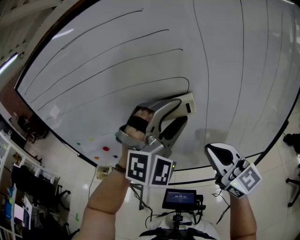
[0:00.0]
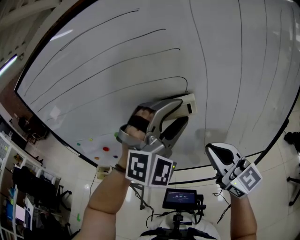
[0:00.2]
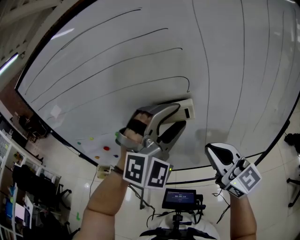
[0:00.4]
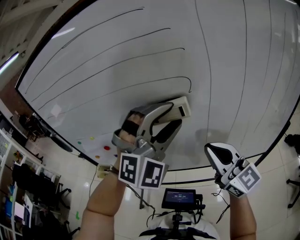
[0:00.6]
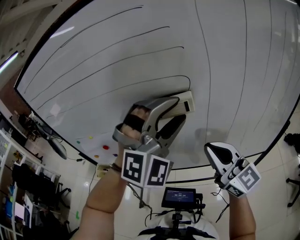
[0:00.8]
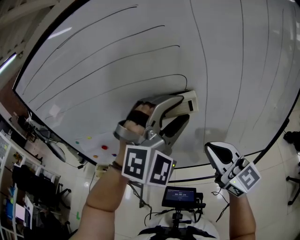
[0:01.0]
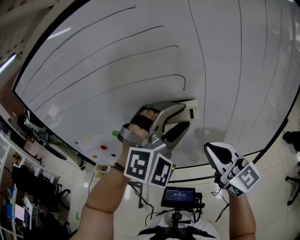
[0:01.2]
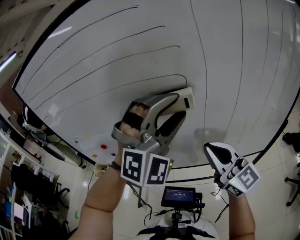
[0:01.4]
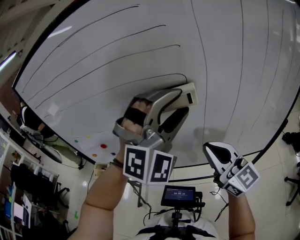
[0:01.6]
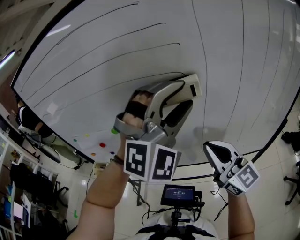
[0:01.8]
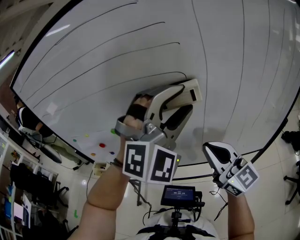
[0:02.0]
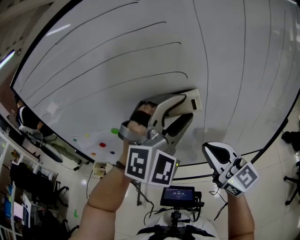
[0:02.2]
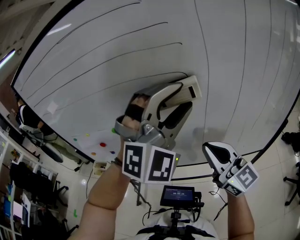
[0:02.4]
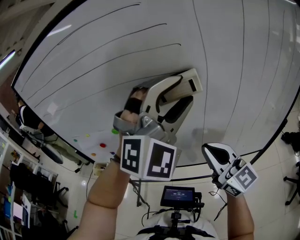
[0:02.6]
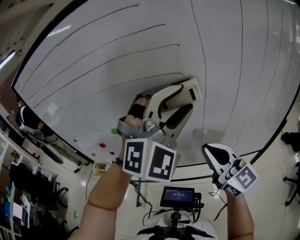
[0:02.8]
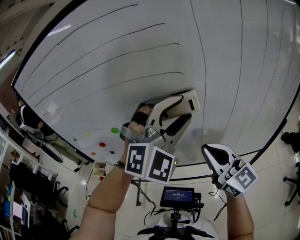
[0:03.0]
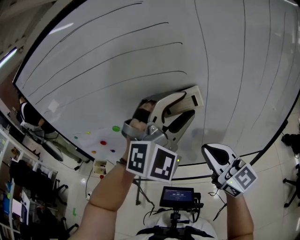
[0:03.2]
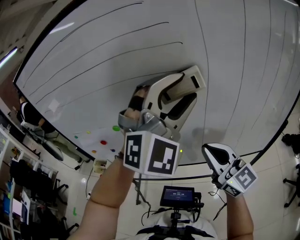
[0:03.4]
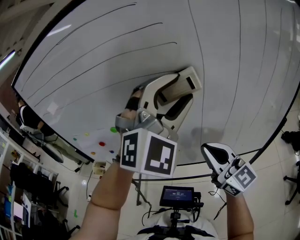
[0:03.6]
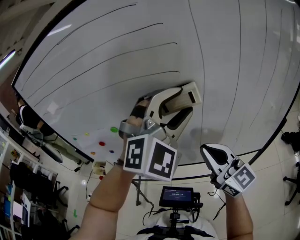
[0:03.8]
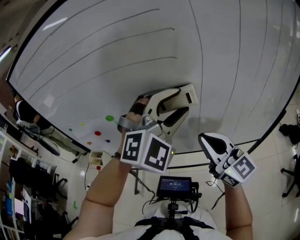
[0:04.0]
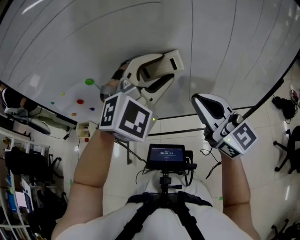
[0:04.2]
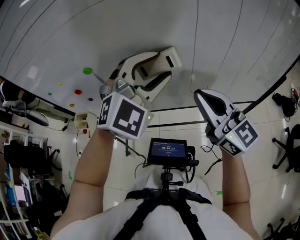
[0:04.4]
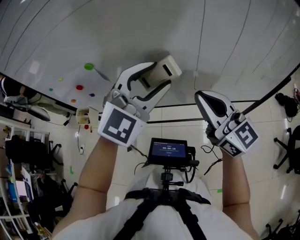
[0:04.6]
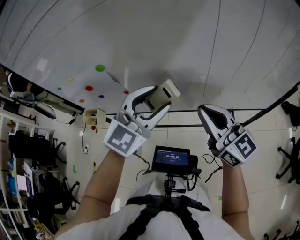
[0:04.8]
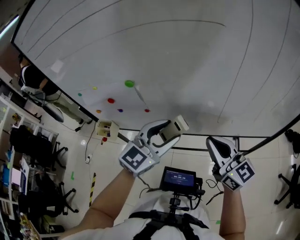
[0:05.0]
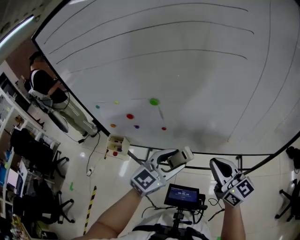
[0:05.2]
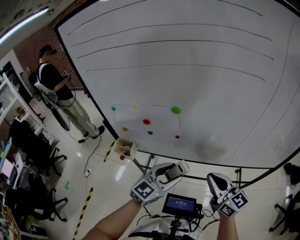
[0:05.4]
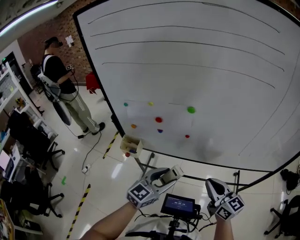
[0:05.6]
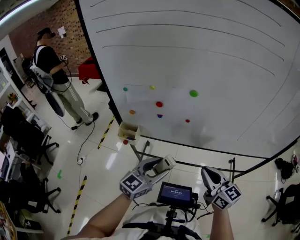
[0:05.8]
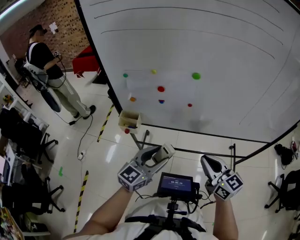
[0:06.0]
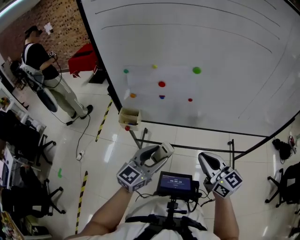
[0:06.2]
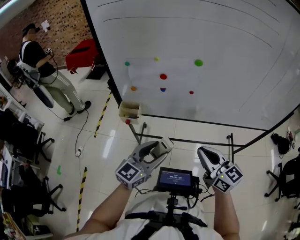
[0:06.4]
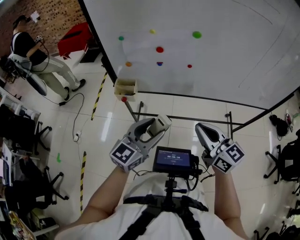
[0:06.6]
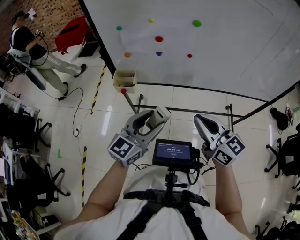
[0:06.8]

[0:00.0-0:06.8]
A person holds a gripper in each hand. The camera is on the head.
0:00.0 to 0:02.8: The grippers stay close to where they were, moving slightly.
0:02.8 to 0:04.0: The left gripper shifts roughly 5 cm downward.
0:04.0 to 0:05.4: The right gripper travels to the left, downward and backward by some 20 cm, while the left gripper is displaced to the left, downward and backward by some 35 cm, and twists approximately 60 degrees counterclockwise, seen from behind.
0:05.4 to 0:06.8: The grippers both shift to the left and backward by approximately 20 cm.

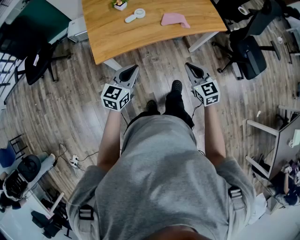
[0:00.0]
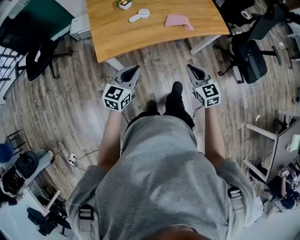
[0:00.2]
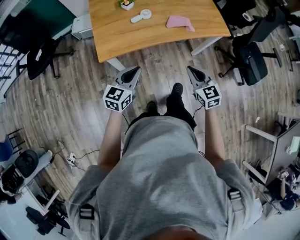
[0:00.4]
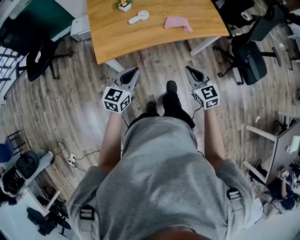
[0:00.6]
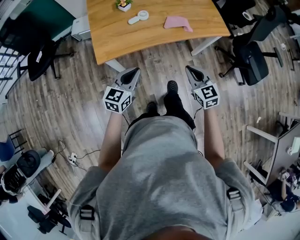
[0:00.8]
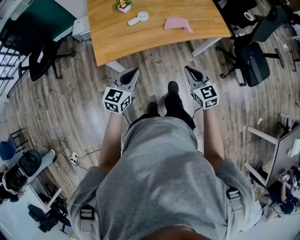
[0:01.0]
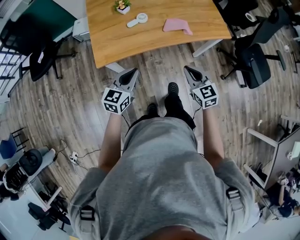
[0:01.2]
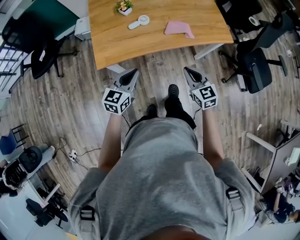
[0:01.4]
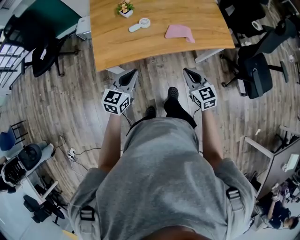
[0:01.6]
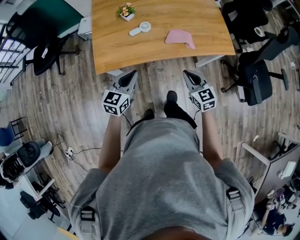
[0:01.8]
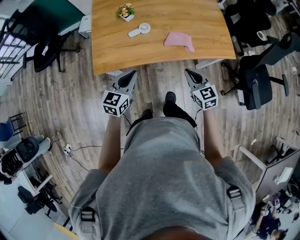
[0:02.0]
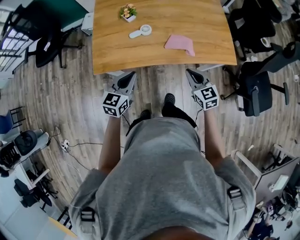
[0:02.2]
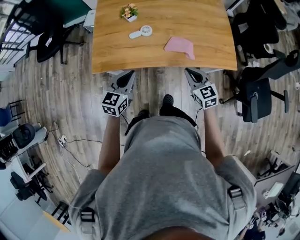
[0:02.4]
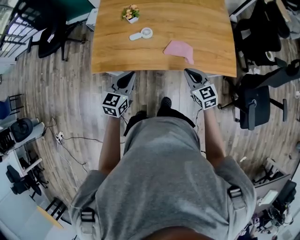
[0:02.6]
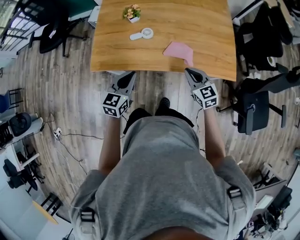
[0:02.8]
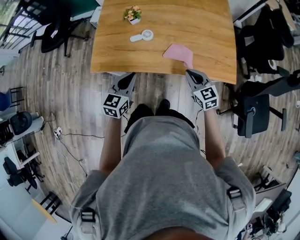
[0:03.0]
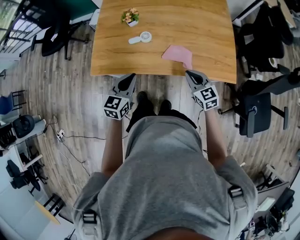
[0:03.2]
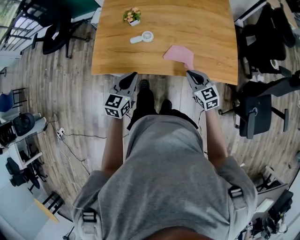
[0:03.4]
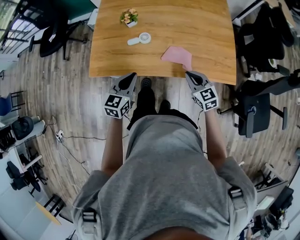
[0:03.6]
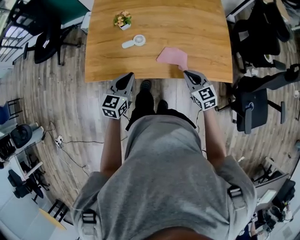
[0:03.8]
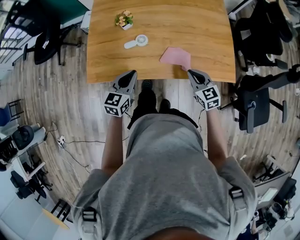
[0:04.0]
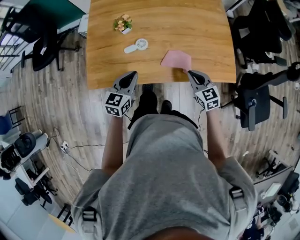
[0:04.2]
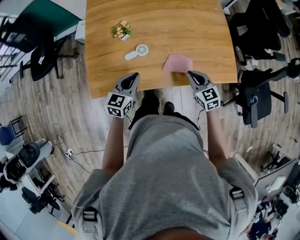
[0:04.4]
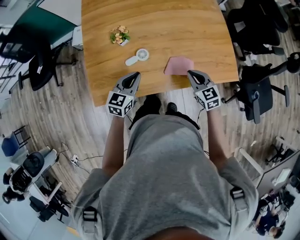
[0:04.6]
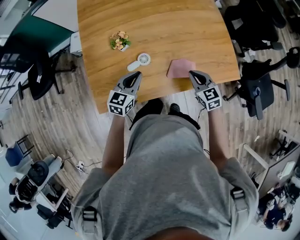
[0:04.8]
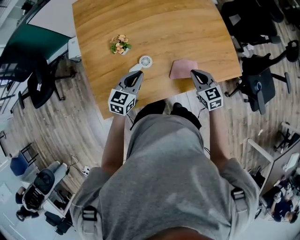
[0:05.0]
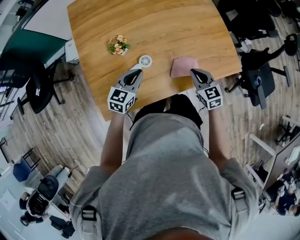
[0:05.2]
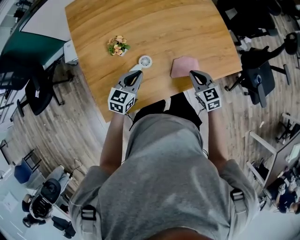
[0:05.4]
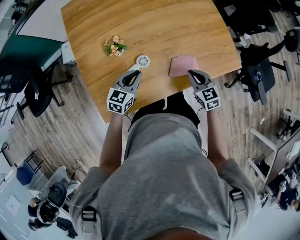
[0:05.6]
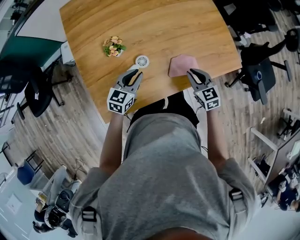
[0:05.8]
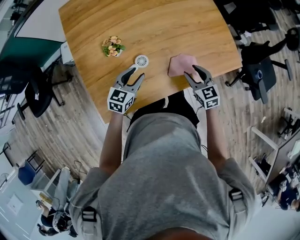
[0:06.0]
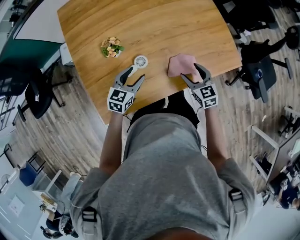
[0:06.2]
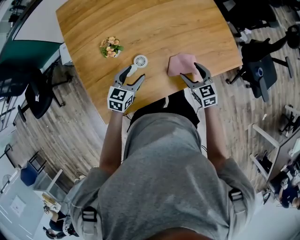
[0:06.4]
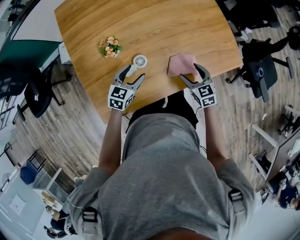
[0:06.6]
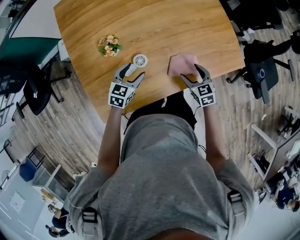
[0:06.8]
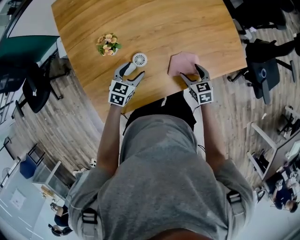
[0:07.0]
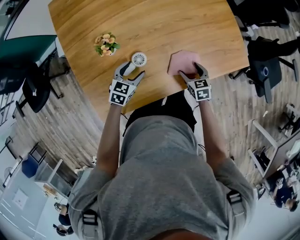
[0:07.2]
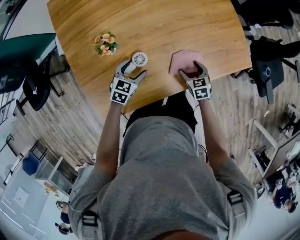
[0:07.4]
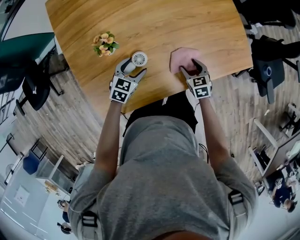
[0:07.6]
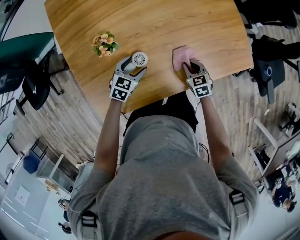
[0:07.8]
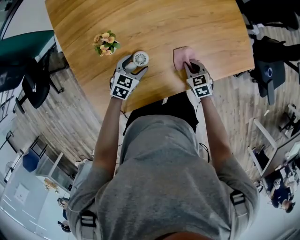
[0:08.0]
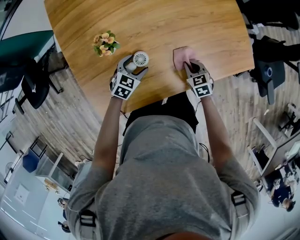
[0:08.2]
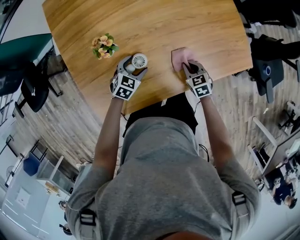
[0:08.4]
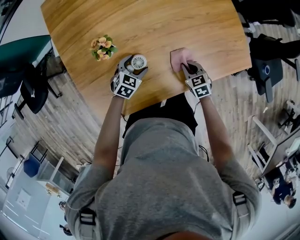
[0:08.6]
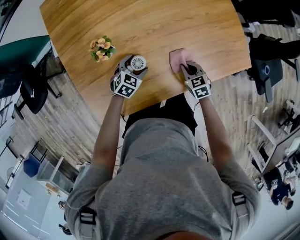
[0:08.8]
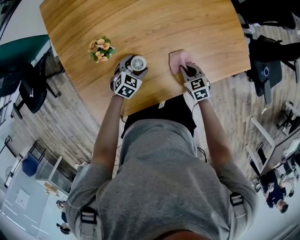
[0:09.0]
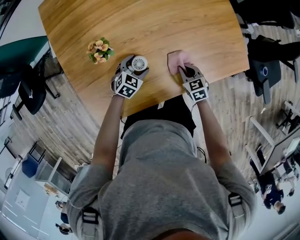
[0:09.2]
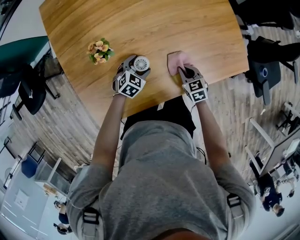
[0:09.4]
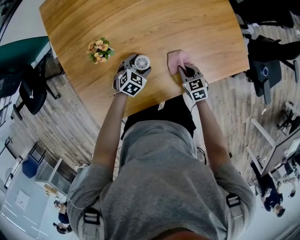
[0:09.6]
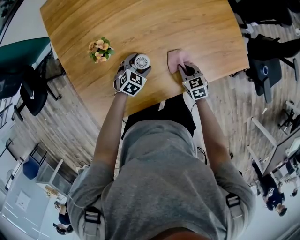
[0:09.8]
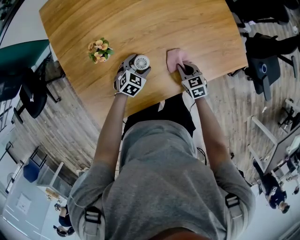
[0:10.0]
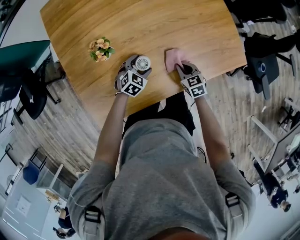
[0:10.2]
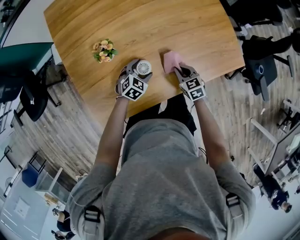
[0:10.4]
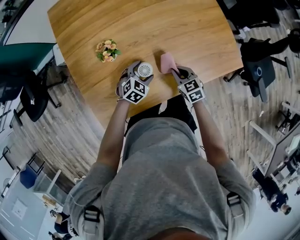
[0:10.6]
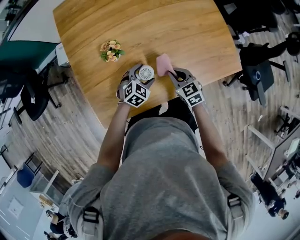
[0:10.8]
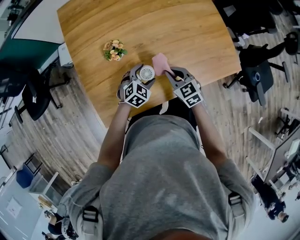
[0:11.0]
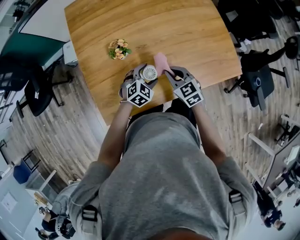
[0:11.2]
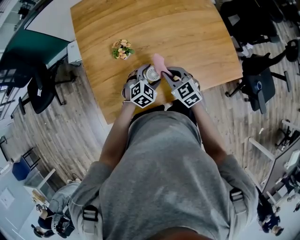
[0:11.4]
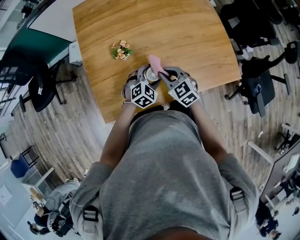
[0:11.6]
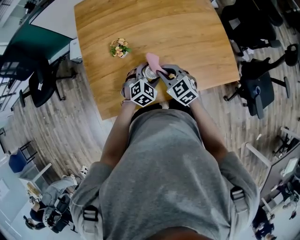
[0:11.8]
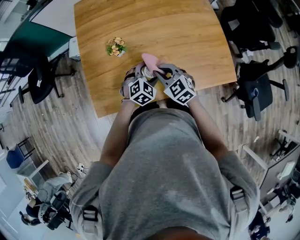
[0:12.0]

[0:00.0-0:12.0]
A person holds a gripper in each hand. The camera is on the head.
0:00.0 to 0:01.6: Both grippers travel together forward, roughly 10 cm.
0:01.6 to 0:03.0: The left gripper is displaced forward and to the right by some 10 cm. Meanwhile the right gripper travels forward and to the right by about 20 cm.
0:03.0 to 0:04.4: The right gripper heads forward, covering approximately 10 cm; the left gripper moves forward, roughly 15 cm.
0:04.4 to 0:06.0: The right gripper ends up roughly 5 cm from where it was, and opens its fingers; the left gripper travels forward and downward by roughly 10 cm, changes its angle by about 20 degrees, and opens up.
0:06.0 to 0:07.6: The grippers both shift downward by roughly 15 cm. The left gripper opens up.
0:07.6 to 0:09.0: The right gripper closes its fingers. Meanwhile the left gripper changes place by some 5 cm.
0:09.0 to 0:10.4: The grippers make only small movements.
0:10.4 to 0:12.0: The right gripper heads upward and to the left, covering approximately 20 cm, and rotates roughly 40 degrees. Meanwhile the left gripper goes about 15 cm upward.

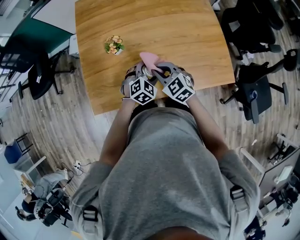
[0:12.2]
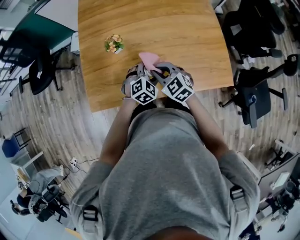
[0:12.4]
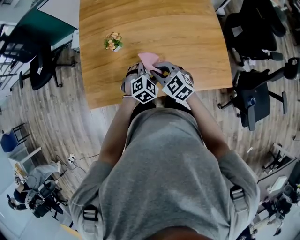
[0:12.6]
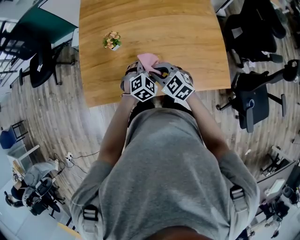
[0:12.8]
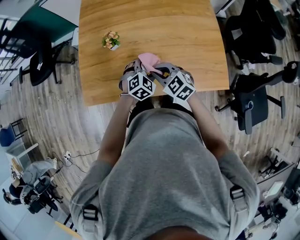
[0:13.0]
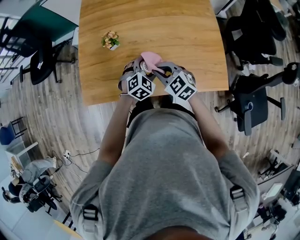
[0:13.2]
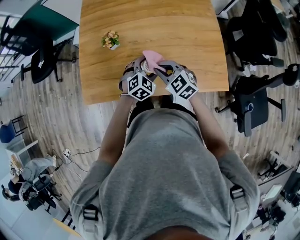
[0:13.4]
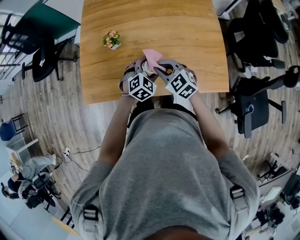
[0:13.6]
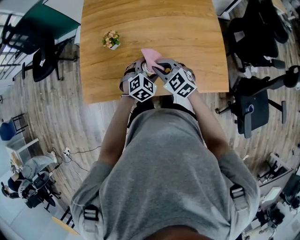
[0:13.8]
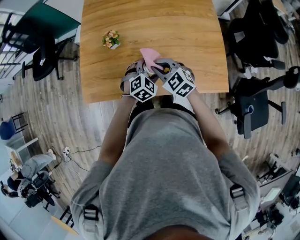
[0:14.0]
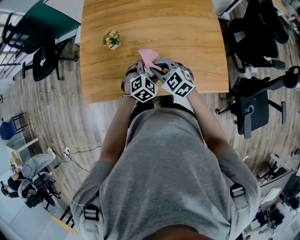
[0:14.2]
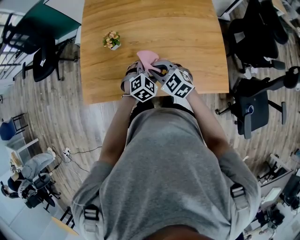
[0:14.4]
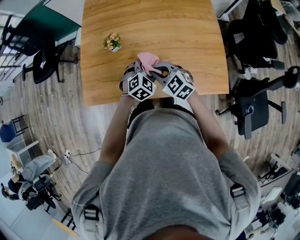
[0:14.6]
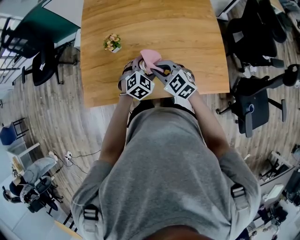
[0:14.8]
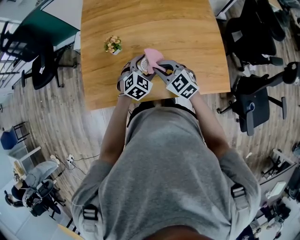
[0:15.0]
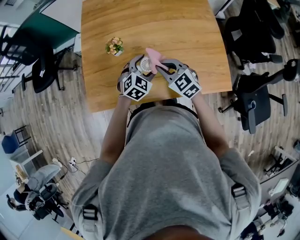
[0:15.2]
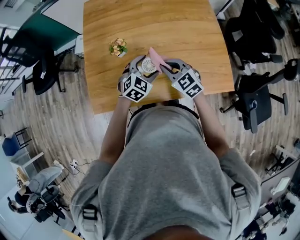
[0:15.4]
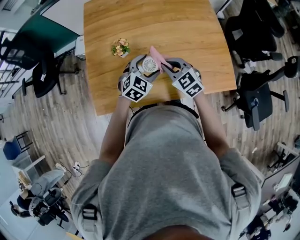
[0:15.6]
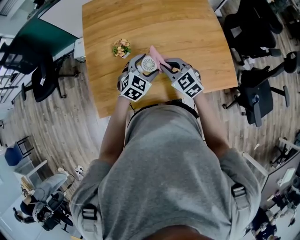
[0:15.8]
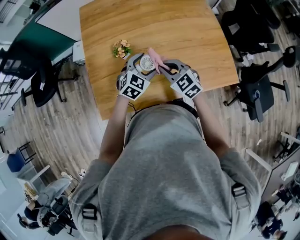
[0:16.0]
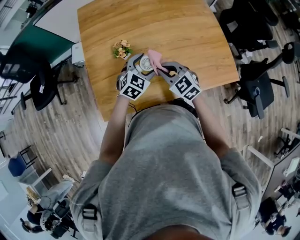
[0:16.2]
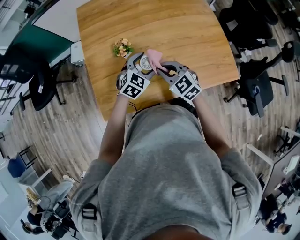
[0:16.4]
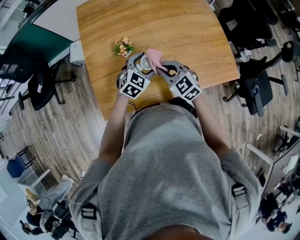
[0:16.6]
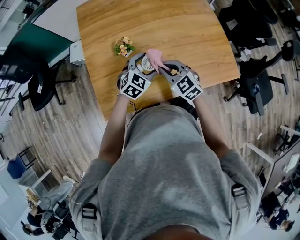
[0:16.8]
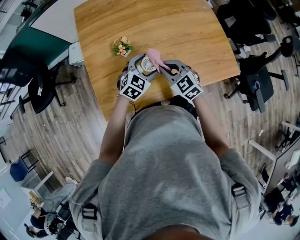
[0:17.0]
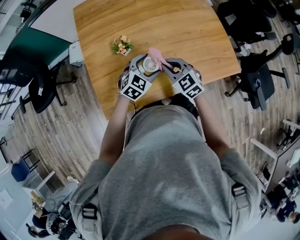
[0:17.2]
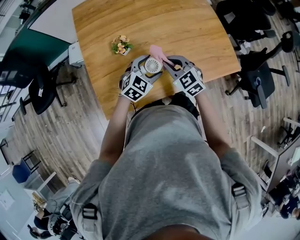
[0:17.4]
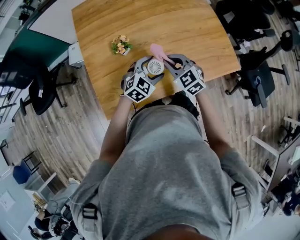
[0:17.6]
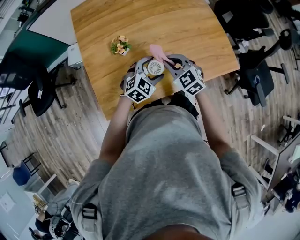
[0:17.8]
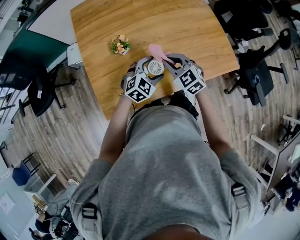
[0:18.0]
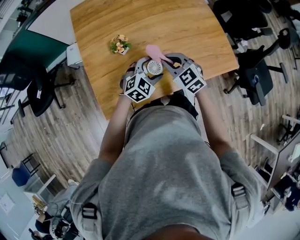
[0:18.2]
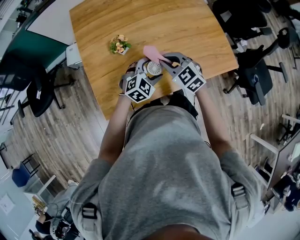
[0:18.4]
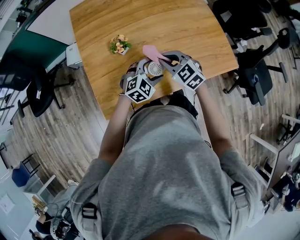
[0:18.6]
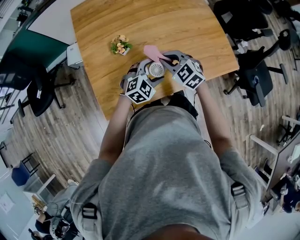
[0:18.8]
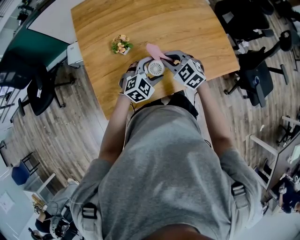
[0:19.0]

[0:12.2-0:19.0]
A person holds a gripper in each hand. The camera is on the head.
0:12.2 to 0:13.6: The two grippers go about 5 cm to the right.
0:13.6 to 0:15.0: The grippers make only small movements.
0:15.0 to 0:16.2: Both grippers travel together to the left, some 10 cm.
0:16.2 to 0:17.6: The left gripper moves backward, some 5 cm.
0:17.6 to 0:19.0: The grippers move only a little.
